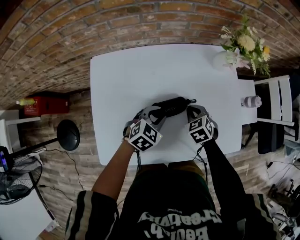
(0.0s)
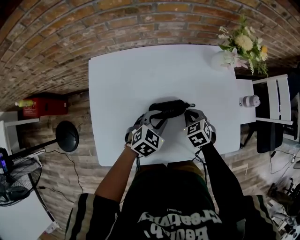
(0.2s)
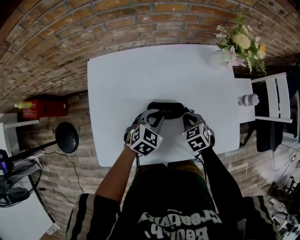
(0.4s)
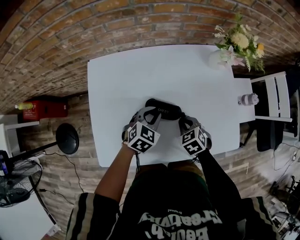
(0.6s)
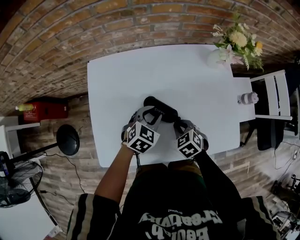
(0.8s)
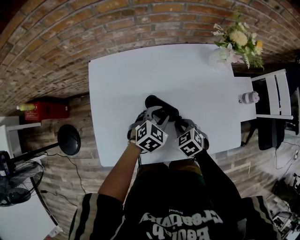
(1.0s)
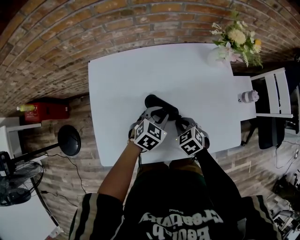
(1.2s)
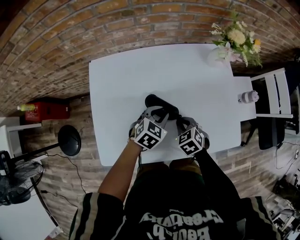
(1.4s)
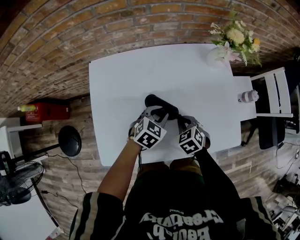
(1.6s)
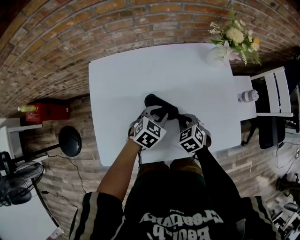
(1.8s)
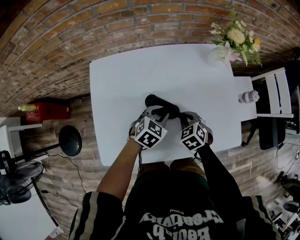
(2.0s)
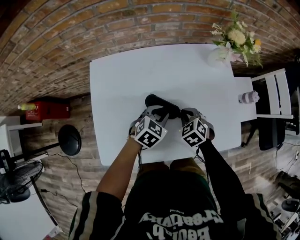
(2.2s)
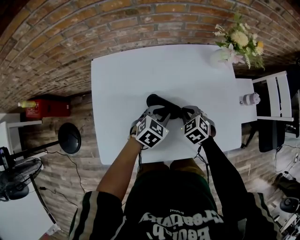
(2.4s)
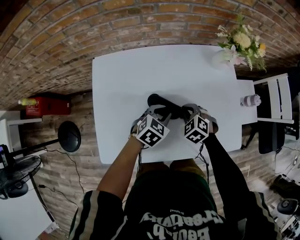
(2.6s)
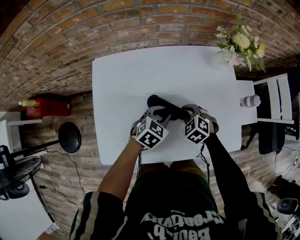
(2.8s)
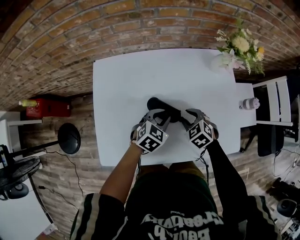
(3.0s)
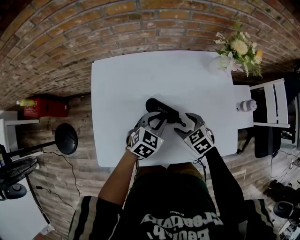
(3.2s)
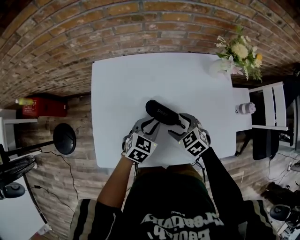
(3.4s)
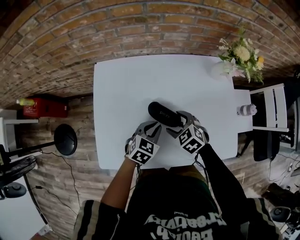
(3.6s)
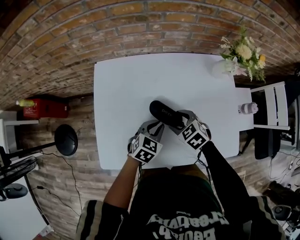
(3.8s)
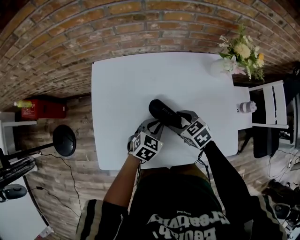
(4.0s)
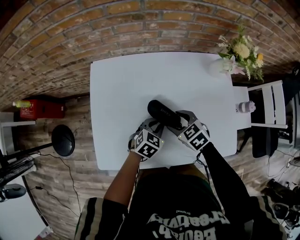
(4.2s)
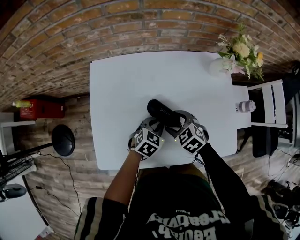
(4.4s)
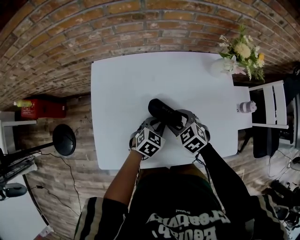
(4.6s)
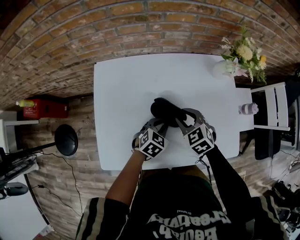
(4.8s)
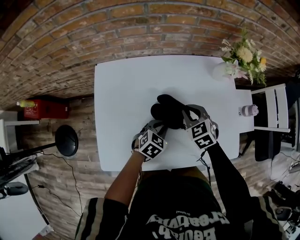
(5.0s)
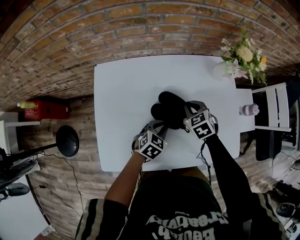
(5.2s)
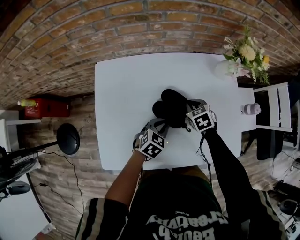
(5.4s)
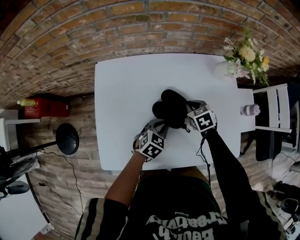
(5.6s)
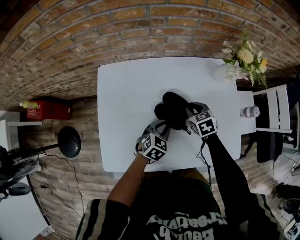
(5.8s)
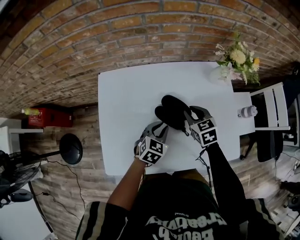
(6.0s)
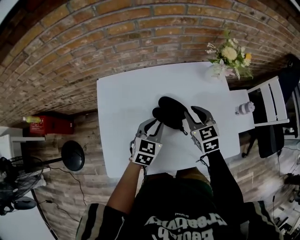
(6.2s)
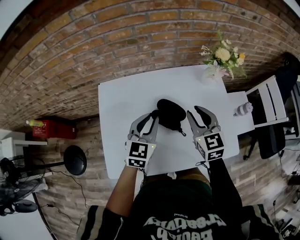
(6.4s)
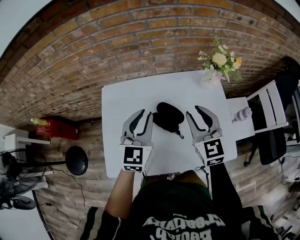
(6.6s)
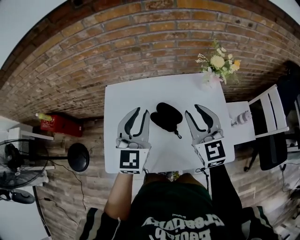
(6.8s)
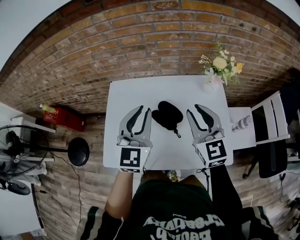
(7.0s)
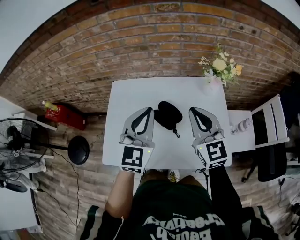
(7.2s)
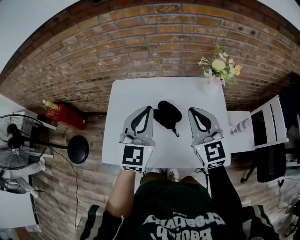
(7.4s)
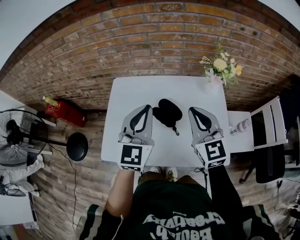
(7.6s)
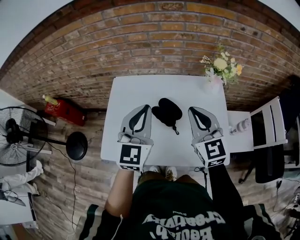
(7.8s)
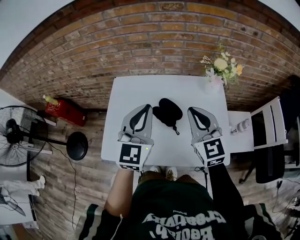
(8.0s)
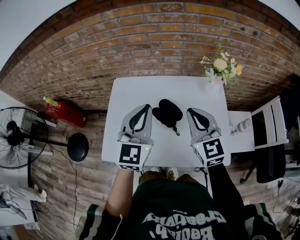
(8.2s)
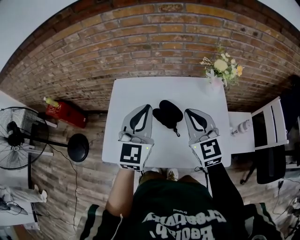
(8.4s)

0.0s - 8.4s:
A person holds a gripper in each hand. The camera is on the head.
0.0s - 1.4s: The right gripper goes about 10 cm backward.
1.4s - 2.8s: The right gripper goes approximately 5 cm forward.
2.8s - 4.2s: The right gripper is displaced to the left by roughly 5 cm, changes its angle by some 20 degrees, and opens.
4.2s - 5.6s: The right gripper goes some 10 cm forward and to the right, and closes its fingers.
5.6s - 7.0s: The grippers both shift upward by about 35 cm. The right gripper tilts its fingers about 50 degrees upward; the left gripper angles its fingers upward, by some 40 degrees.
7.0s - 8.4s: The right gripper closes.

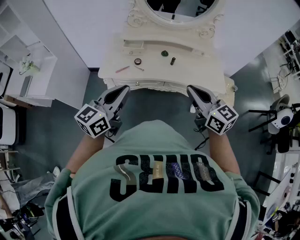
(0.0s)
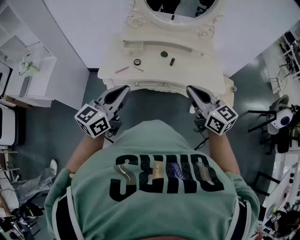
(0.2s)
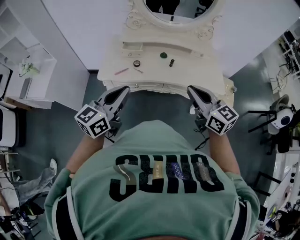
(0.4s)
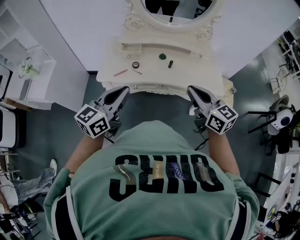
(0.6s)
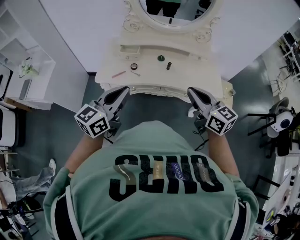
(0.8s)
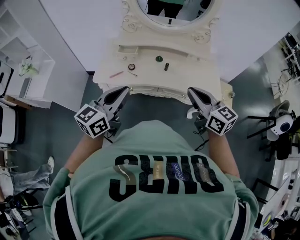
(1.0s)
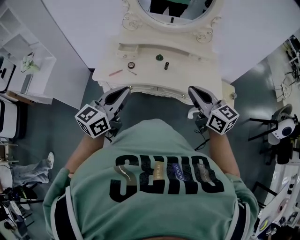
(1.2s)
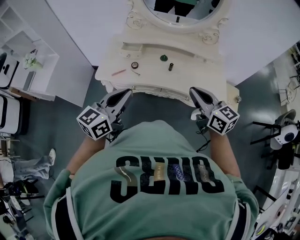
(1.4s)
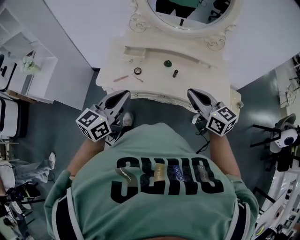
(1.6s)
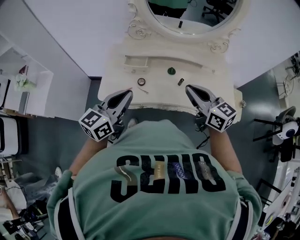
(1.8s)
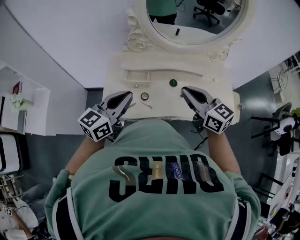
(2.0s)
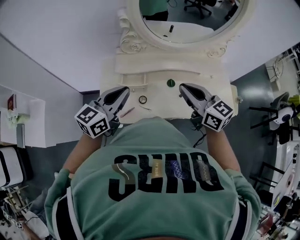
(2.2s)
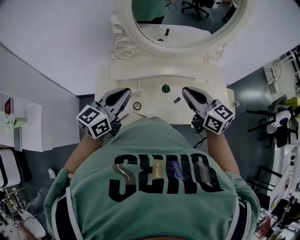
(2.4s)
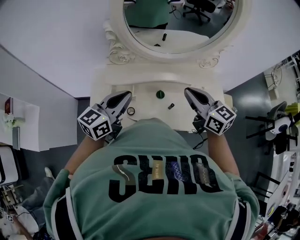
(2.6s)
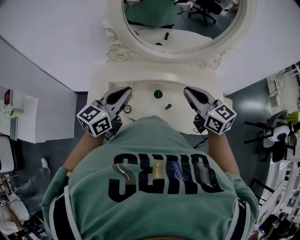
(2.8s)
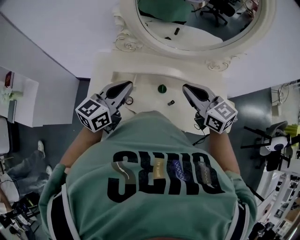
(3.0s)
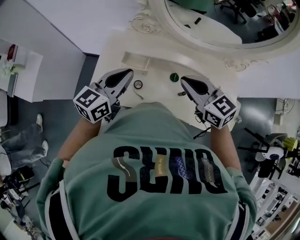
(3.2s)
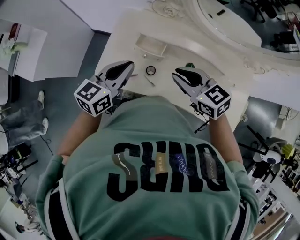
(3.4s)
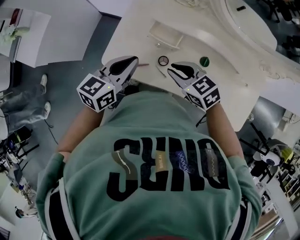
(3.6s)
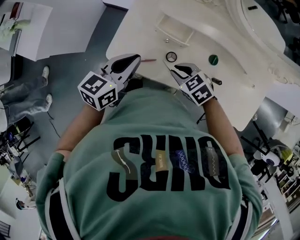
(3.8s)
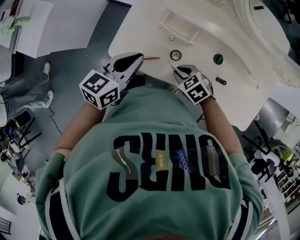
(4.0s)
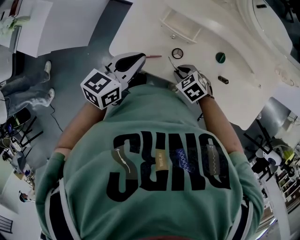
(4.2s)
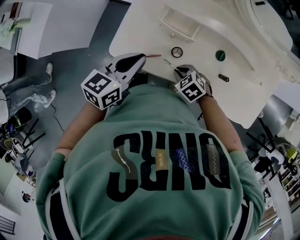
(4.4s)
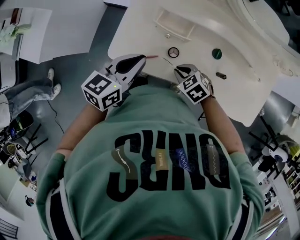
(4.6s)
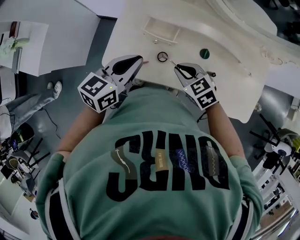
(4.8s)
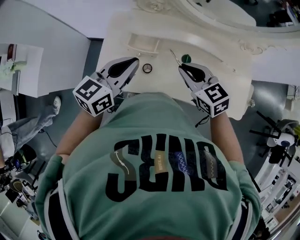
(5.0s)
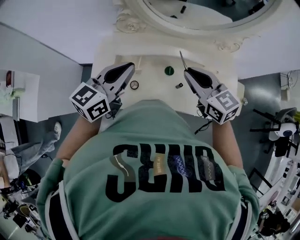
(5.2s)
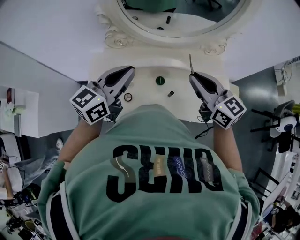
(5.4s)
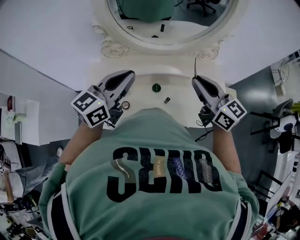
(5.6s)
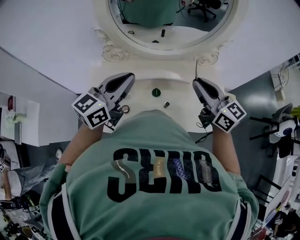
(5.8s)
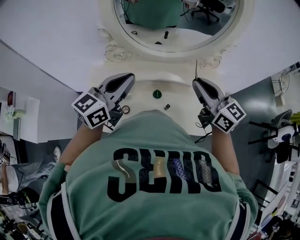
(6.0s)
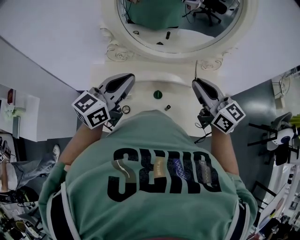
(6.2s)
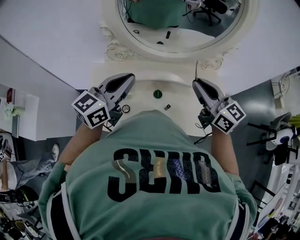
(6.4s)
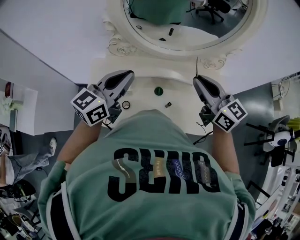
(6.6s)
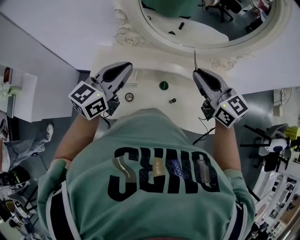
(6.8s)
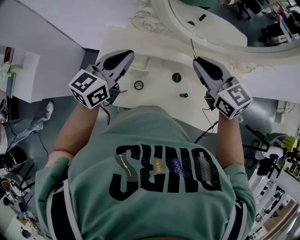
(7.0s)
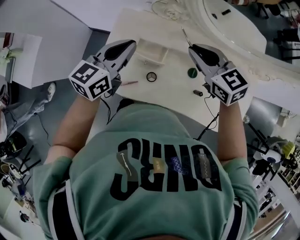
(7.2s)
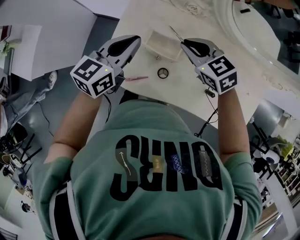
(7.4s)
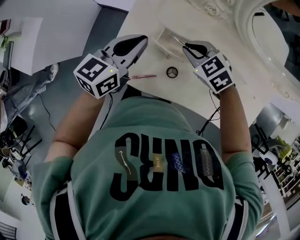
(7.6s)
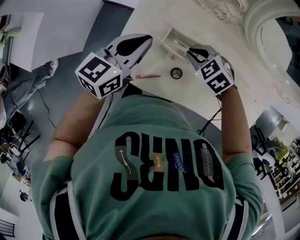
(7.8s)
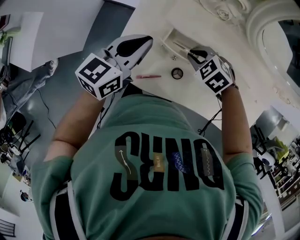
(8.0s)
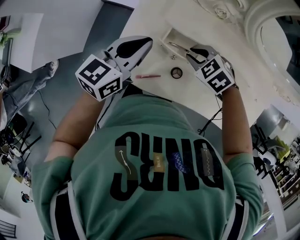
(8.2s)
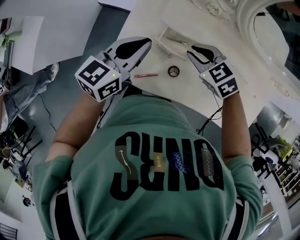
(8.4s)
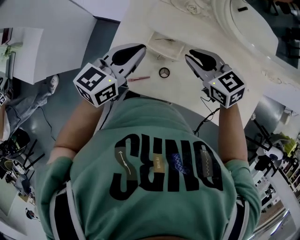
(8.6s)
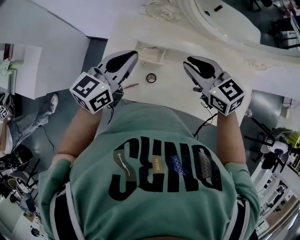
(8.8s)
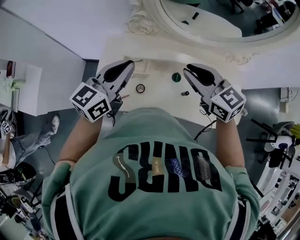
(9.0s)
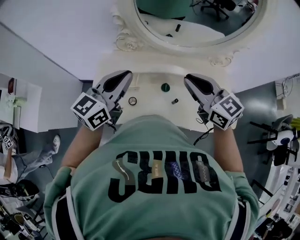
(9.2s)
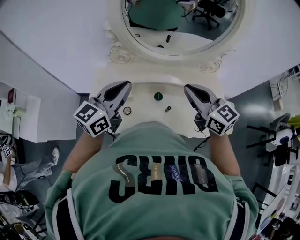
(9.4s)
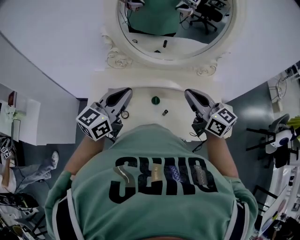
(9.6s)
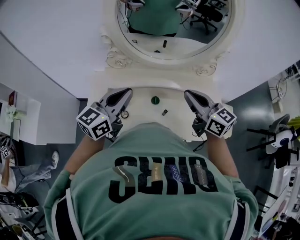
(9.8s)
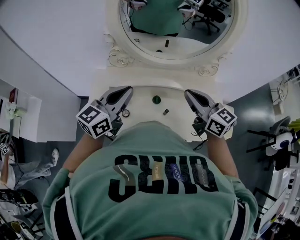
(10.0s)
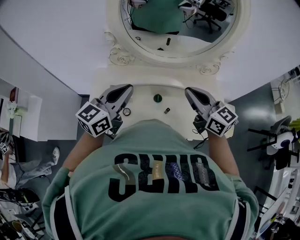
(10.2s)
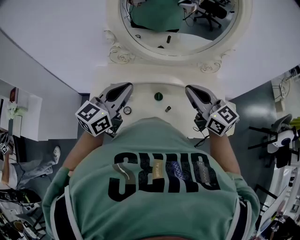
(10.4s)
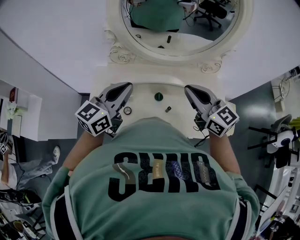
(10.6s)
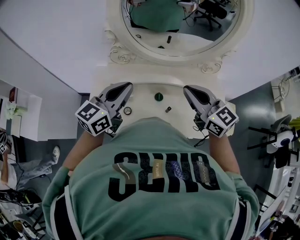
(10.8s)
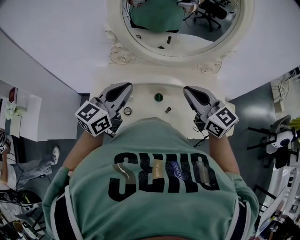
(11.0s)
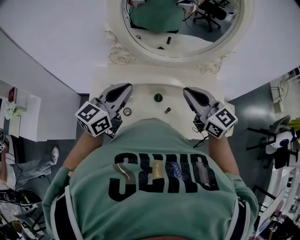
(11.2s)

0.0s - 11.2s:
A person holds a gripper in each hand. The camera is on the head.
0.0s - 1.6s: The two grippers go some 10 cm forward.
1.6s - 3.2s: The right gripper travels forward and to the left by about 25 cm, and turns by about 20 degrees; the left gripper travels forward by about 25 cm.
3.2s - 4.8s: The right gripper travels downward and to the left by approximately 20 cm, and swivels roughly 30 degrees. Meanwhile the left gripper heads downward and to the left, covering about 10 cm.
4.8s - 6.4s: The left gripper is displaced upward, to the right and forward by some 25 cm, and swivels about 30 degrees; the right gripper travels upward and to the right by about 35 cm, and points its fingers roughly 40 degrees further upward.
6.4s - 8.0s: The left gripper changes place by approximately 30 cm, and changes its angle by approximately 30 degrees. The right gripper travels downward by about 35 cm, and tilts its fingers approximately 60 degrees downward.
8.0s - 9.6s: The left gripper shifts by some 30 cm, and swivels about 20 degrees, while the right gripper goes roughly 30 cm upward, and tilts its fingers about 60 degrees upward.
9.6s - 11.2s: There are only small adjustments of the grippers.

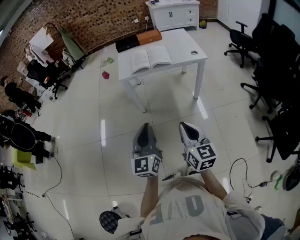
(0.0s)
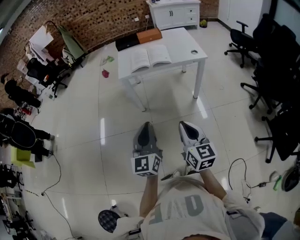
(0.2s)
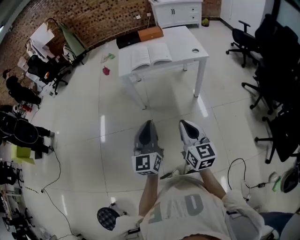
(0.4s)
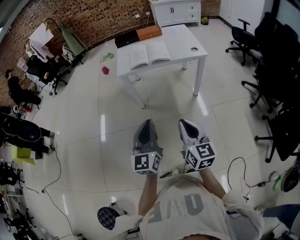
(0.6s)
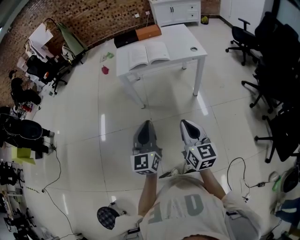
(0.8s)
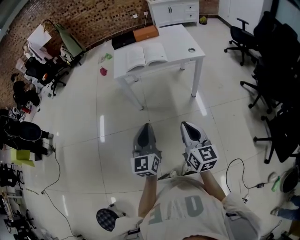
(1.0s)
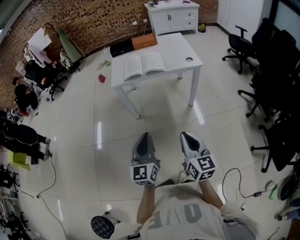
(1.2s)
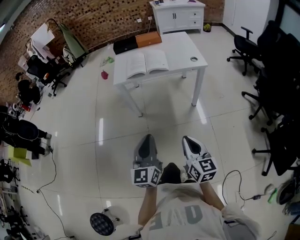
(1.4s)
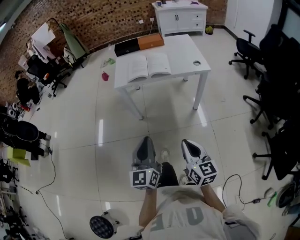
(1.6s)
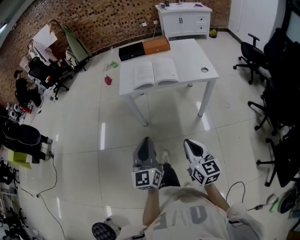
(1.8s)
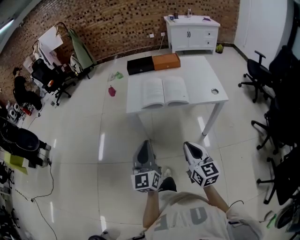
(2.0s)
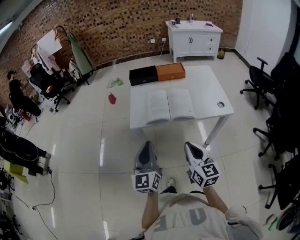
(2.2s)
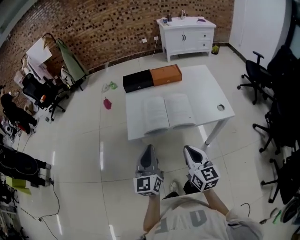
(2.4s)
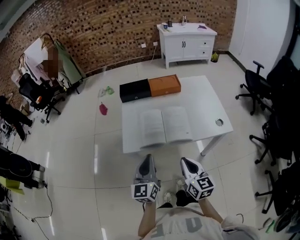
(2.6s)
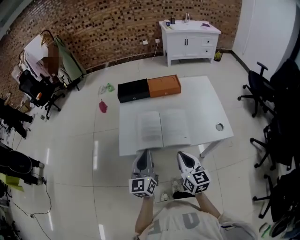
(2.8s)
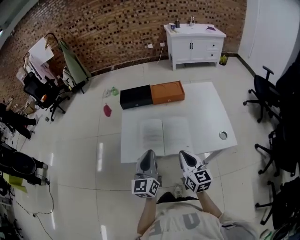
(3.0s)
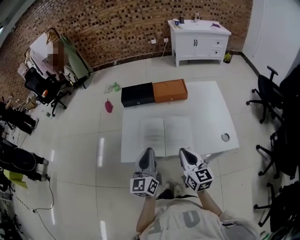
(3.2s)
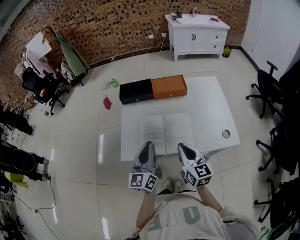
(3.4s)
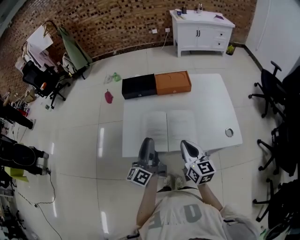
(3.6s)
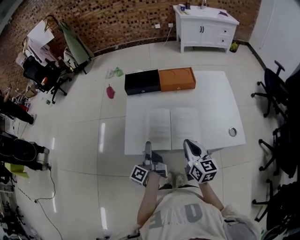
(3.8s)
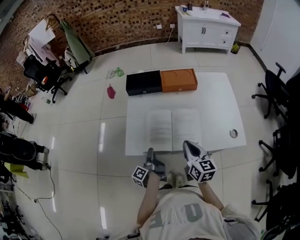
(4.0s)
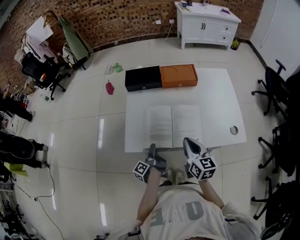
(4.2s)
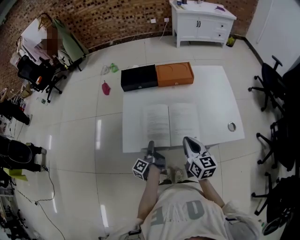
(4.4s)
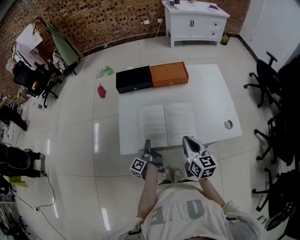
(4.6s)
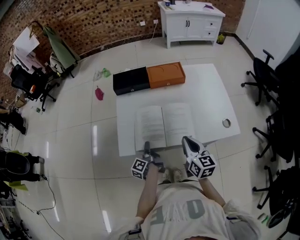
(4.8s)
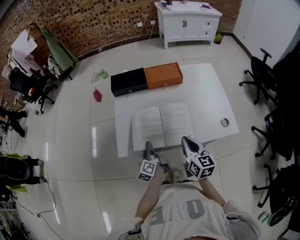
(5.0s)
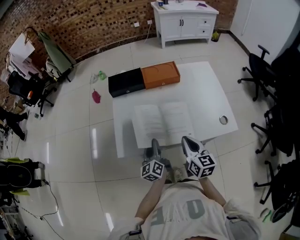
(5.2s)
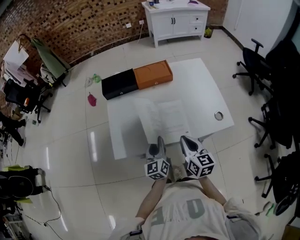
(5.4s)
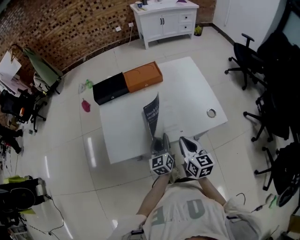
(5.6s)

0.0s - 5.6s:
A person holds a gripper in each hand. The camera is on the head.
0.0s - 1.4s: The right gripper is displaced to the right and downward by roughly 10 cm. Meanwhile the left gripper moves to the right, approximately 5 cm.
1.4s - 2.8s: The two grippers travel together, forward, some 50 cm.
2.8s - 4.2s: The left gripper moves downward, about 25 cm, rolls counterclockwise, seen from behind, by roughly 80 degrees, and opens its fingers; the right gripper is displaced forward by roughly 10 cm.
4.2s - 5.6s: The left gripper travels to the right and upward by some 20 cm, rolls clockwise, seen from behind, by some 80 degrees, and closes up, while the right gripper shifts roughly 5 cm to the right.
